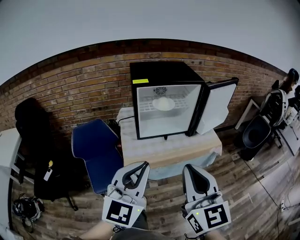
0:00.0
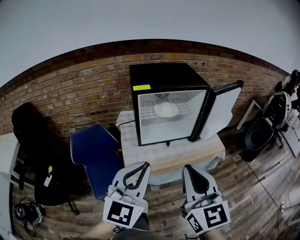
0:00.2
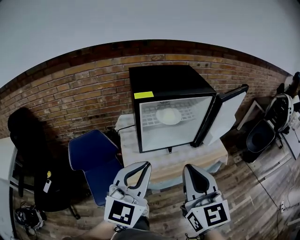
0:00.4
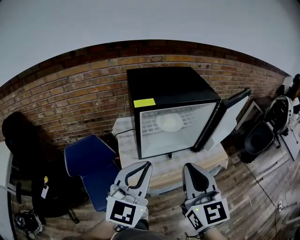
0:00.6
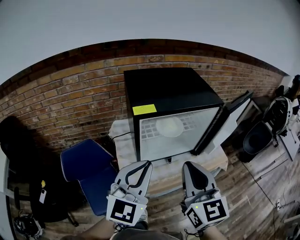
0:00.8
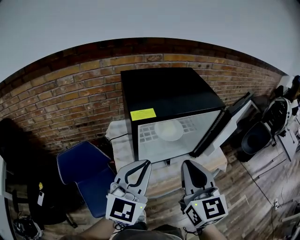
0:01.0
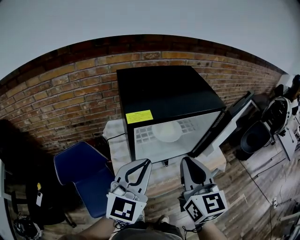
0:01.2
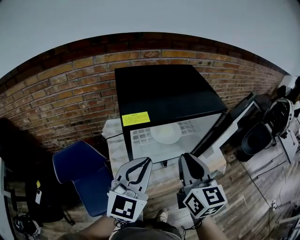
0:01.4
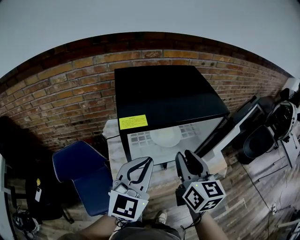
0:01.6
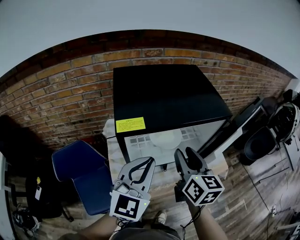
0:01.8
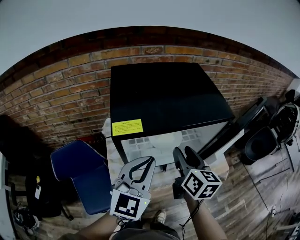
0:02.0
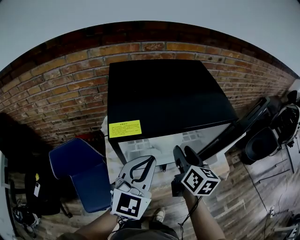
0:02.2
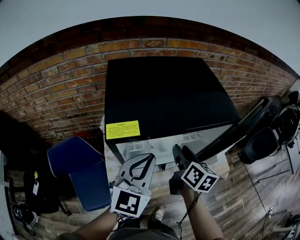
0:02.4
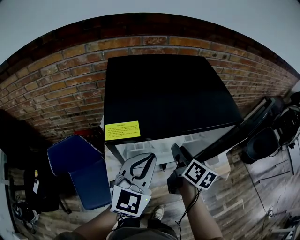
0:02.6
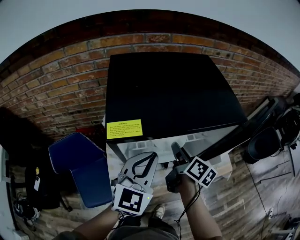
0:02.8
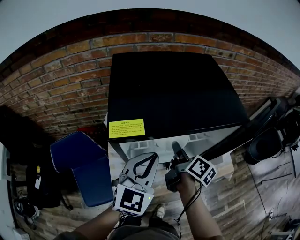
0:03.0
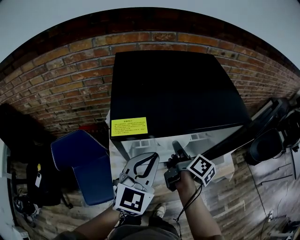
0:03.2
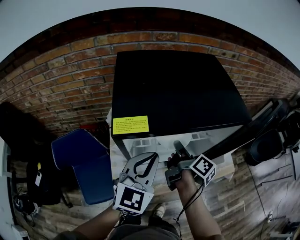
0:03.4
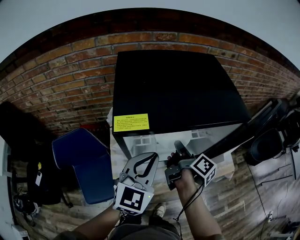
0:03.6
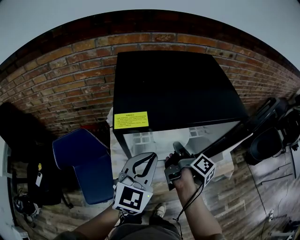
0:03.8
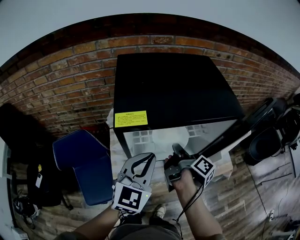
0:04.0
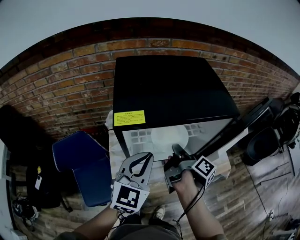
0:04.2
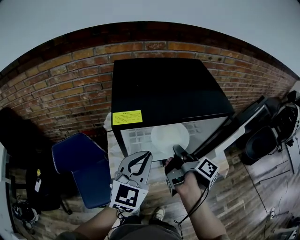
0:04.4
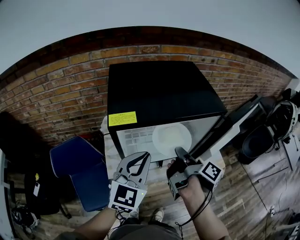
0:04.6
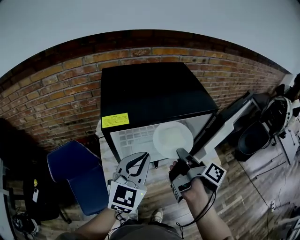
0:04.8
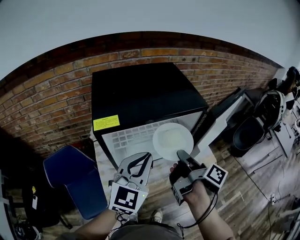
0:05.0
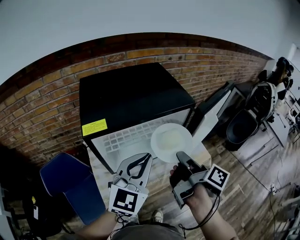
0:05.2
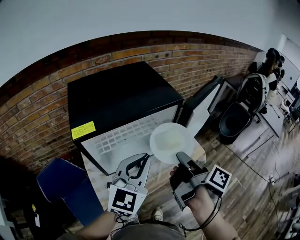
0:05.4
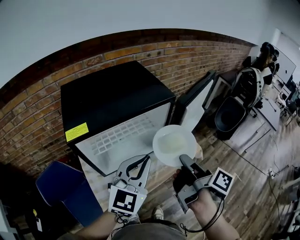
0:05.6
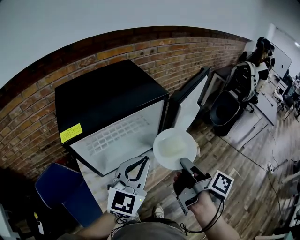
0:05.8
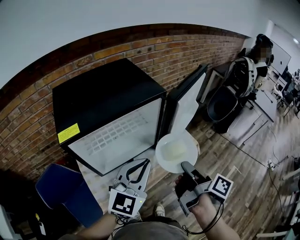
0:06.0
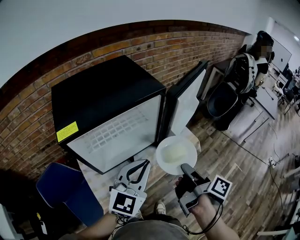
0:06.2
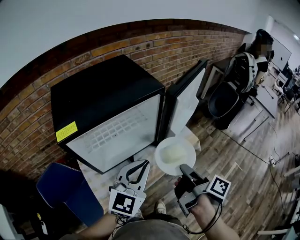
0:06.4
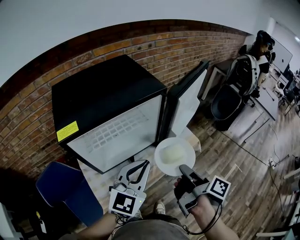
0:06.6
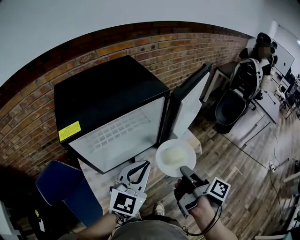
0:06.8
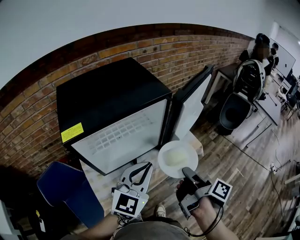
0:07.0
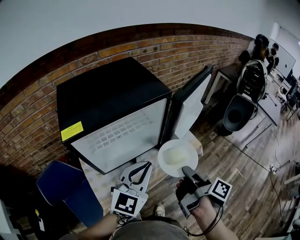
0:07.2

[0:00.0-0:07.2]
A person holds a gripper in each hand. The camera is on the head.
0:00.0 to 0:01.4: The grippers both shift forward by some 30 cm.
0:01.4 to 0:02.8: The right gripper shifts about 20 cm downward and forward, rotates around the line of its fingers by some 50 degrees, clockwise from behind, and opens its fingers, while the left gripper moves forward and downward, approximately 10 cm.
0:02.8 to 0:04.4: The right gripper travels backward by approximately 5 cm, swivels about 30 degrees, and closes its fingers.
0:04.4 to 0:05.8: The left gripper is displaced to the right by about 15 cm, and changes its angle by roughly 20 degrees. The right gripper shifts about 20 cm to the right and backward.
0:05.8 to 0:07.2: The right gripper moves downward, about 5 cm.

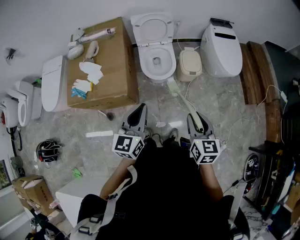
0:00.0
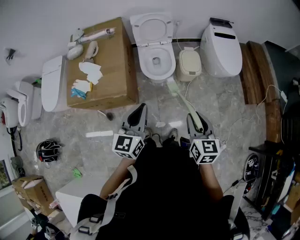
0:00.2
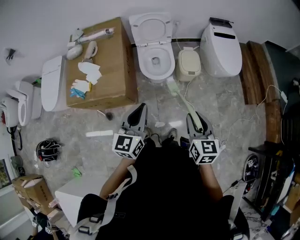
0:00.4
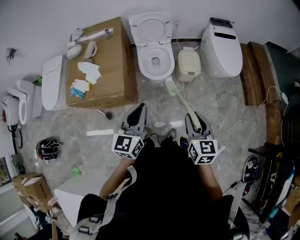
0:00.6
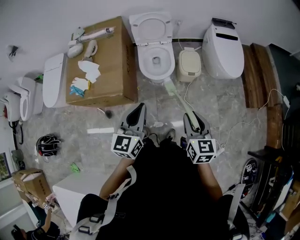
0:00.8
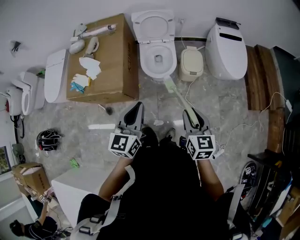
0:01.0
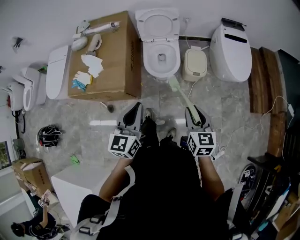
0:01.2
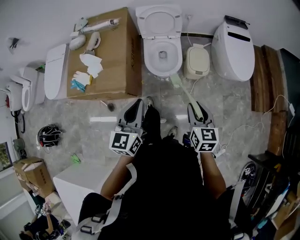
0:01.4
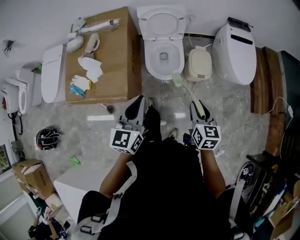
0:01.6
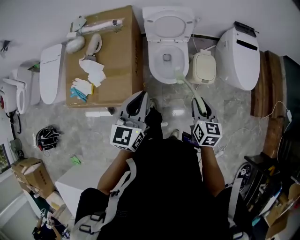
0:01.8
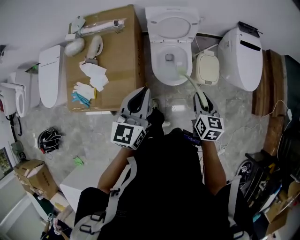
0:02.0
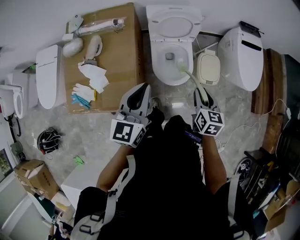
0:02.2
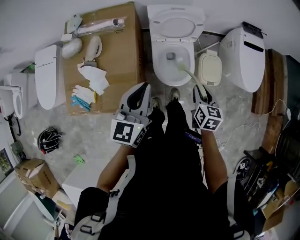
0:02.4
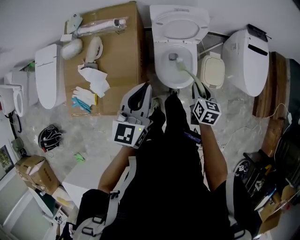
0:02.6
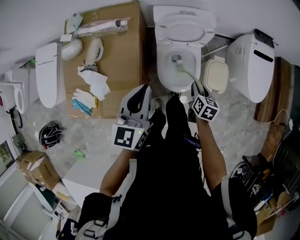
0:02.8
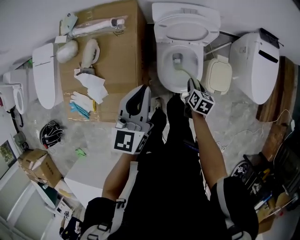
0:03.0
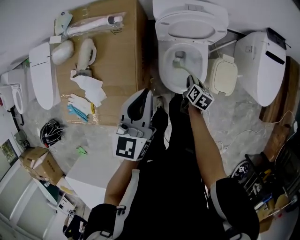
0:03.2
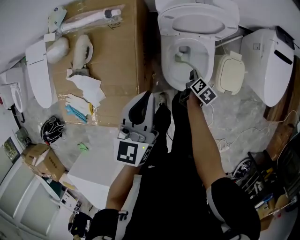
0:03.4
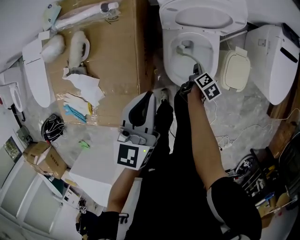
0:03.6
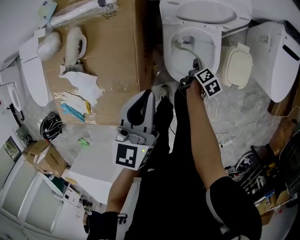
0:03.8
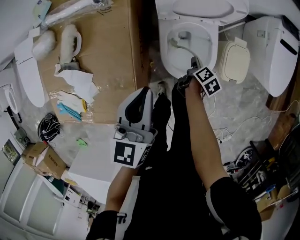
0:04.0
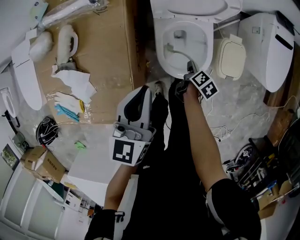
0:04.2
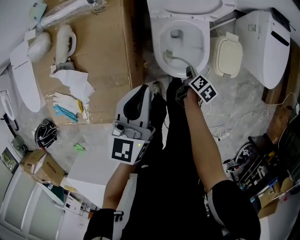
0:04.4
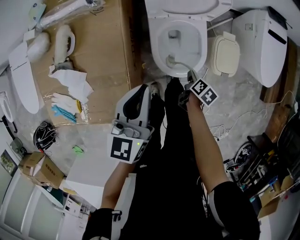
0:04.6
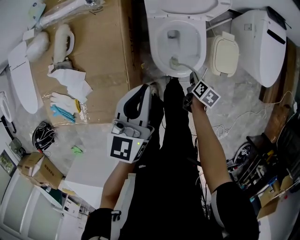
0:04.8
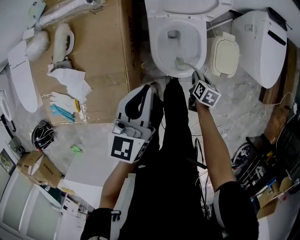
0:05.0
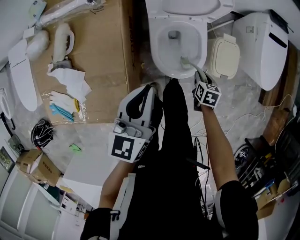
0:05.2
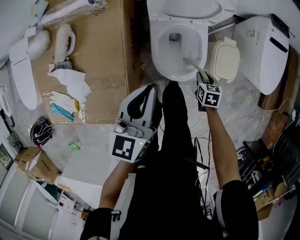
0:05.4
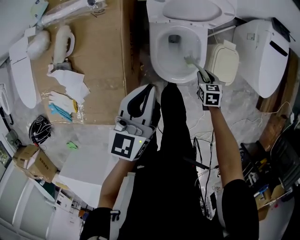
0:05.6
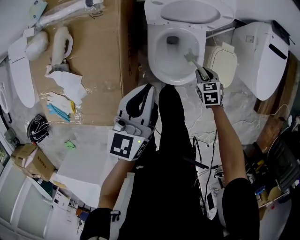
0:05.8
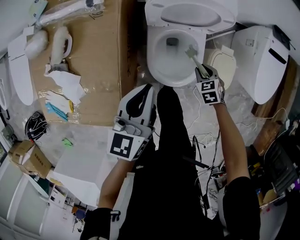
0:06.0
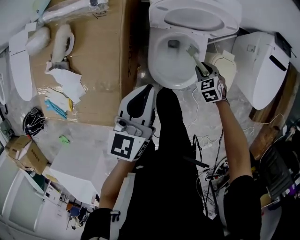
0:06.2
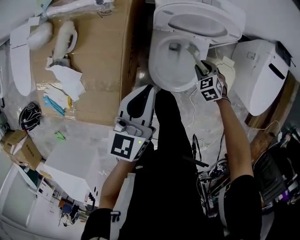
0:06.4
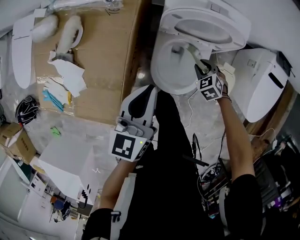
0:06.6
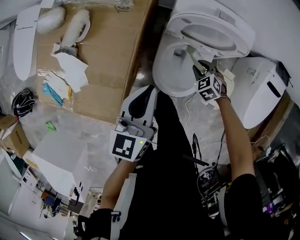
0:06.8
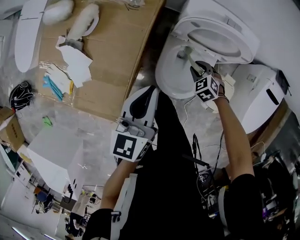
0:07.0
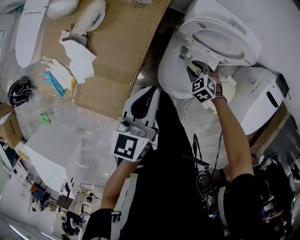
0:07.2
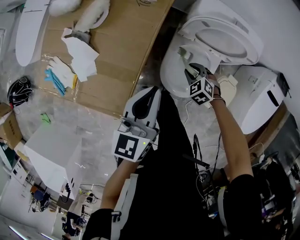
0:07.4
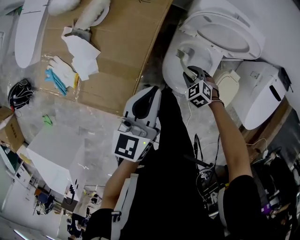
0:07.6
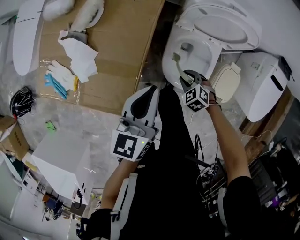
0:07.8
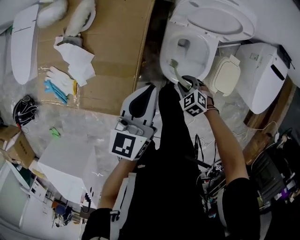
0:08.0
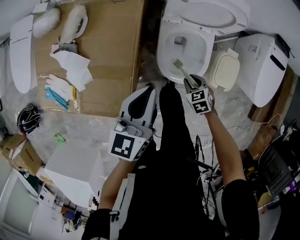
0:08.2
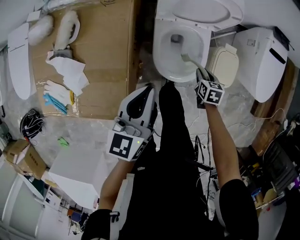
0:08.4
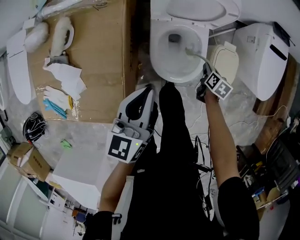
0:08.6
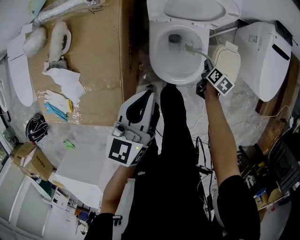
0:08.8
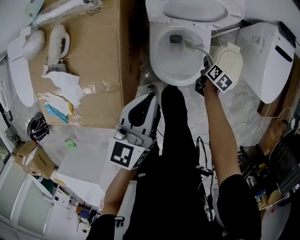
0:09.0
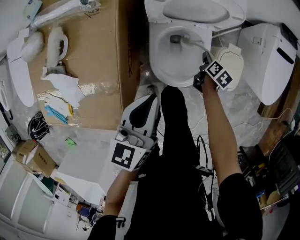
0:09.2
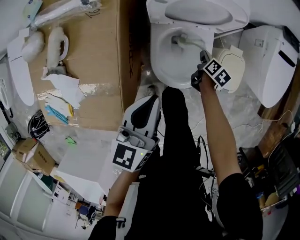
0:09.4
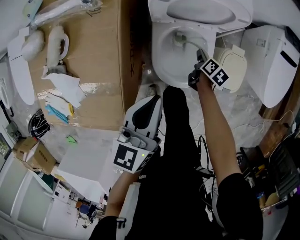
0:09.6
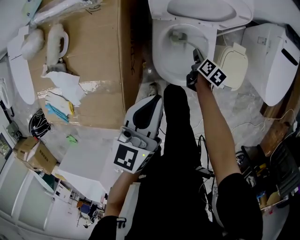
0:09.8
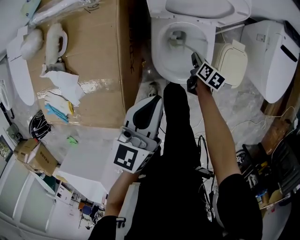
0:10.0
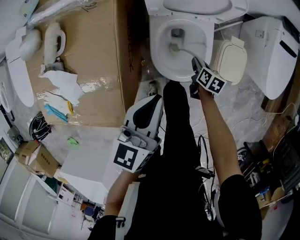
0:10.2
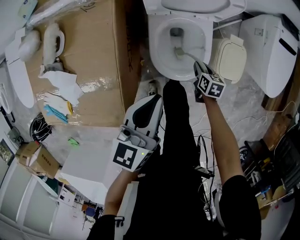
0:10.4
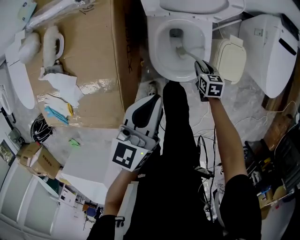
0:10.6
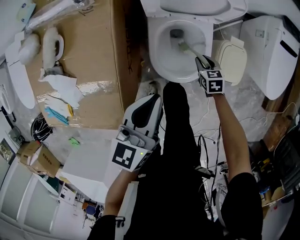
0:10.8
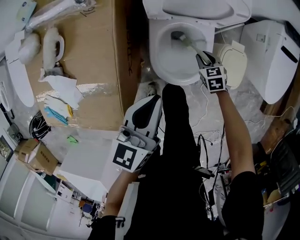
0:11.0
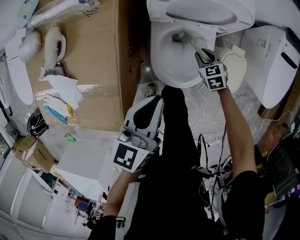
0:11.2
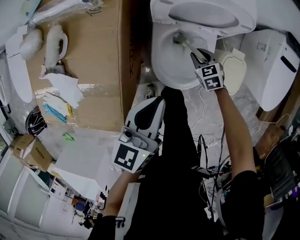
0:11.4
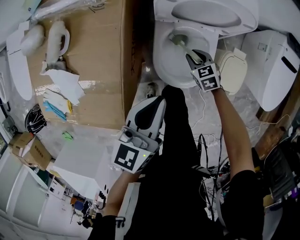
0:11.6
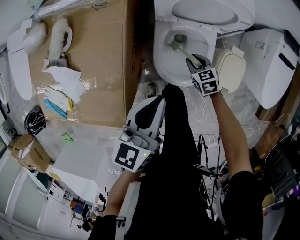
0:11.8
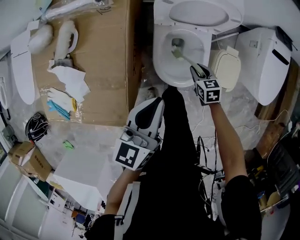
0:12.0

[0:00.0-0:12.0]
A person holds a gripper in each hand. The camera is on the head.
0:00.0 to 0:01.6: The right gripper moves forward and downward, roughly 20 cm, while the left gripper goes approximately 15 cm forward.
0:01.6 to 0:03.0: The right gripper is displaced forward and downward by about 40 cm, and rotates approximately 30 degrees. The left gripper heads forward, covering some 30 cm.
0:03.0 to 0:04.4: Both grippers move downward, roughly 15 cm. The right gripper turns by roughly 30 degrees.
0:04.4 to 0:06.0: The right gripper heads forward and to the right, covering approximately 10 cm, and twists roughly 90 degrees counterclockwise, seen from behind, while the left gripper is displaced forward by roughly 5 cm.
0:06.0 to 0:07.6: The left gripper changes place by approximately 10 cm; the right gripper shifts by some 20 cm, and turns by roughly 40 degrees.
0:07.6 to 0:09.0: The right gripper shifts by roughly 25 cm, and twists approximately 100 degrees clockwise, seen from behind. Meanwhile the left gripper shifts by roughly 10 cm.
0:09.0 to 0:10.4: The right gripper travels backward and to the left by roughly 10 cm, and turns by about 20 degrees.
0:10.4 to 0:12.0: The right gripper travels upward by roughly 5 cm, goes forward and returns, roughly 10 cm each way, and turns by roughly 30 degrees.

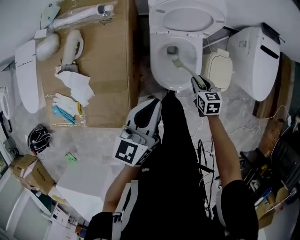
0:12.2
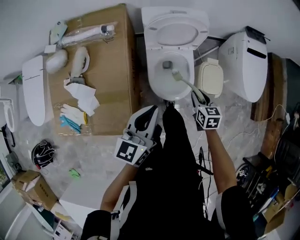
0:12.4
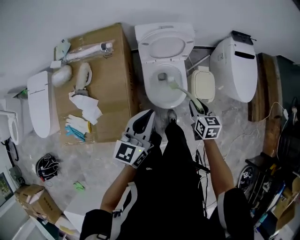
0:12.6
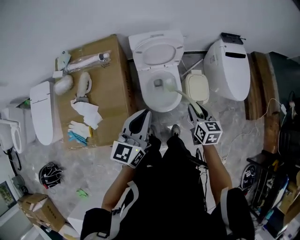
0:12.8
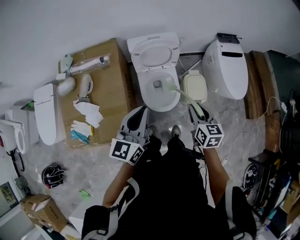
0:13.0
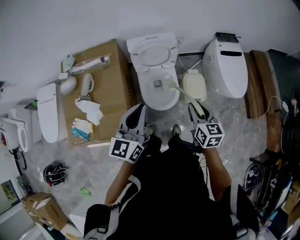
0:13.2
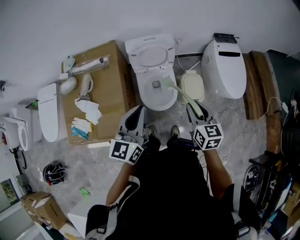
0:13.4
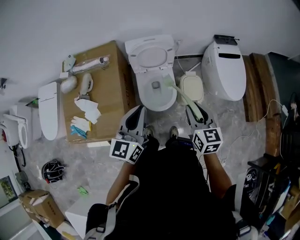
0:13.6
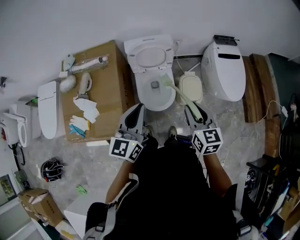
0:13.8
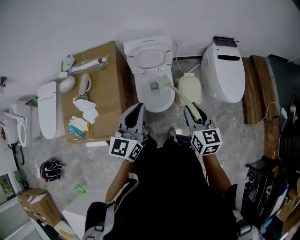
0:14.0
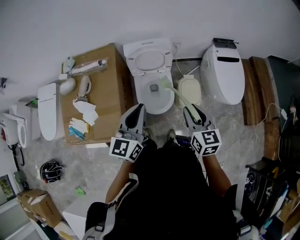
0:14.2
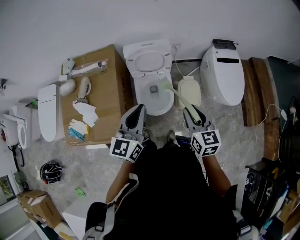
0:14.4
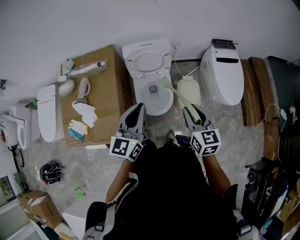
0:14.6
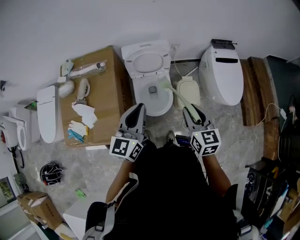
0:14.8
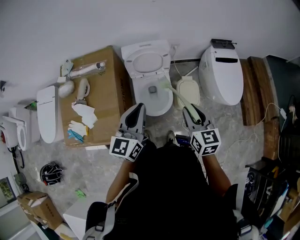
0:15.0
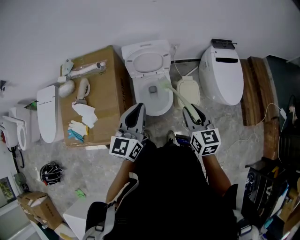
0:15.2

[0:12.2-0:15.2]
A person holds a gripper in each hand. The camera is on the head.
0:12.2 to 0:13.8: The left gripper is displaced upward and to the right by roughly 25 cm, while the right gripper moves upward, roughly 40 cm, and rotates about 30 degrees.
0:13.8 to 0:15.2: The grippers make only small movements.

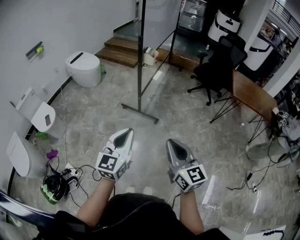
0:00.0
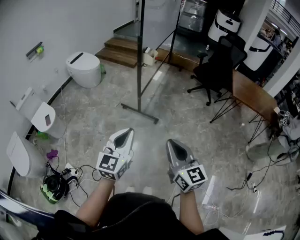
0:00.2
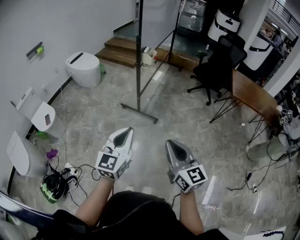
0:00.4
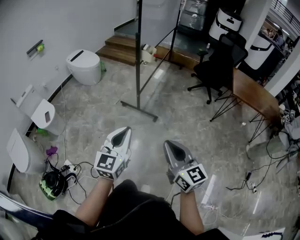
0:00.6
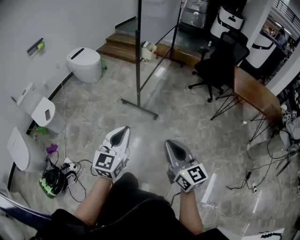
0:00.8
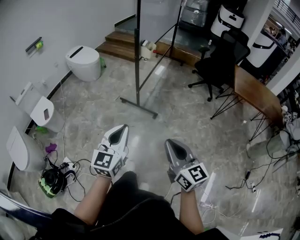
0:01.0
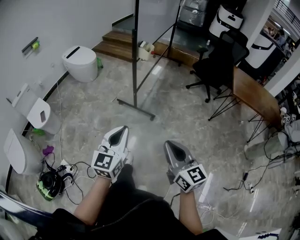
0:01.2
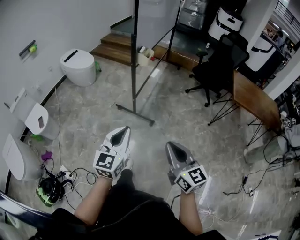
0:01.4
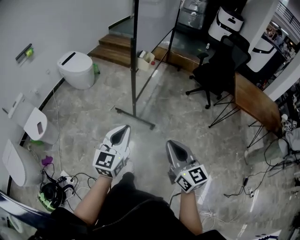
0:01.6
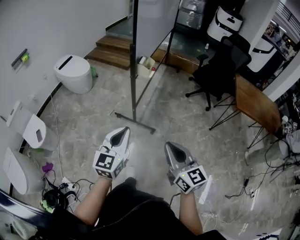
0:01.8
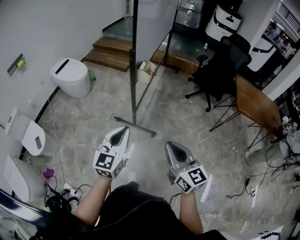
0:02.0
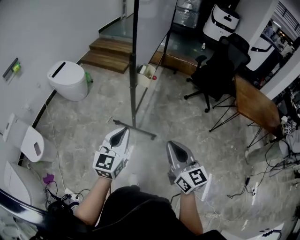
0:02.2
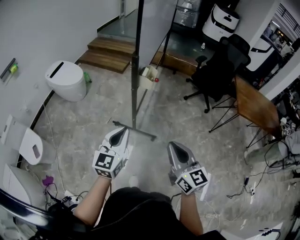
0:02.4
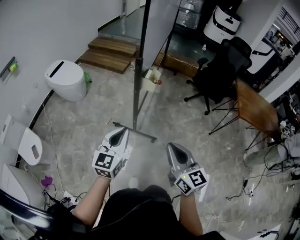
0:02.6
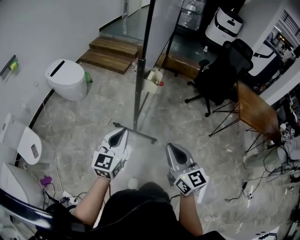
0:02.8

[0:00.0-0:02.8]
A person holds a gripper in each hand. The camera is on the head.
0:00.0 to 0:01.4: Both grippers move forward, roughly 10 cm.
0:01.4 to 0:02.8: Both grippers move forward, roughly 30 cm.
